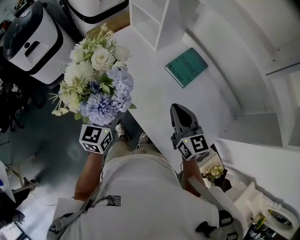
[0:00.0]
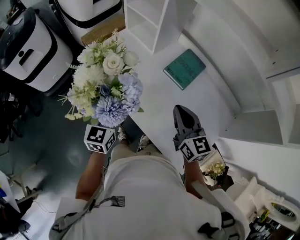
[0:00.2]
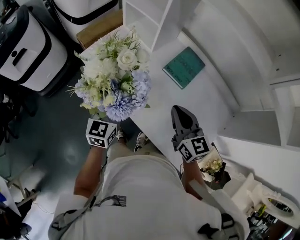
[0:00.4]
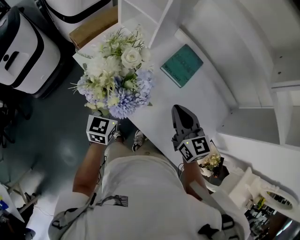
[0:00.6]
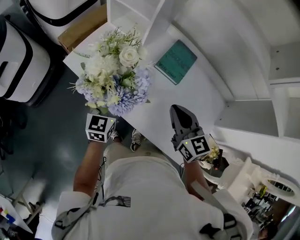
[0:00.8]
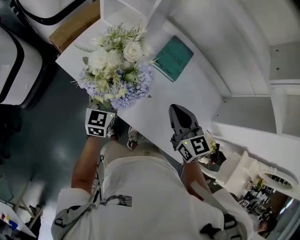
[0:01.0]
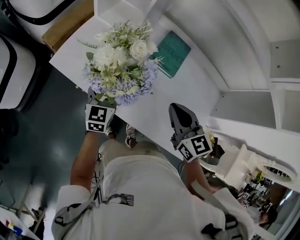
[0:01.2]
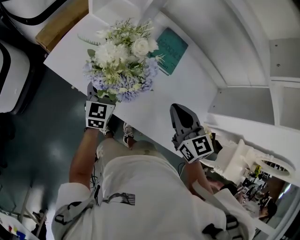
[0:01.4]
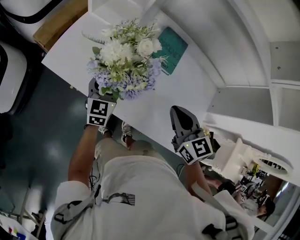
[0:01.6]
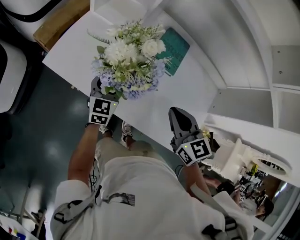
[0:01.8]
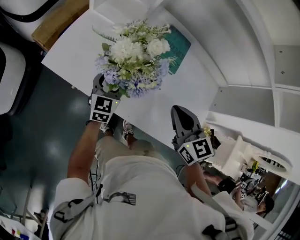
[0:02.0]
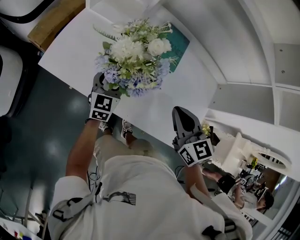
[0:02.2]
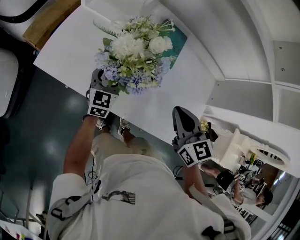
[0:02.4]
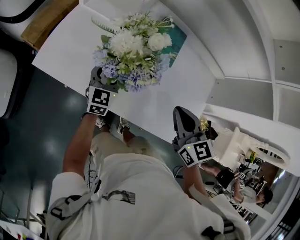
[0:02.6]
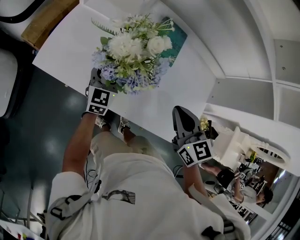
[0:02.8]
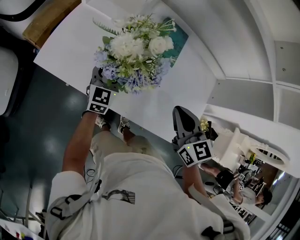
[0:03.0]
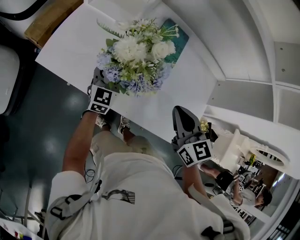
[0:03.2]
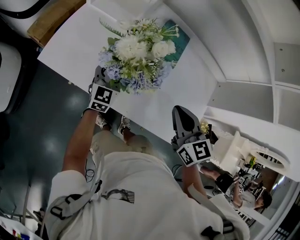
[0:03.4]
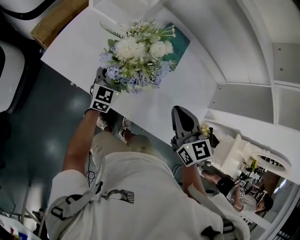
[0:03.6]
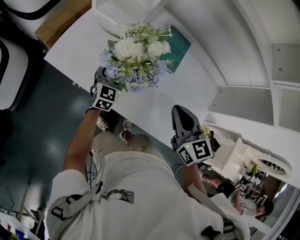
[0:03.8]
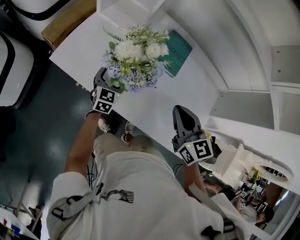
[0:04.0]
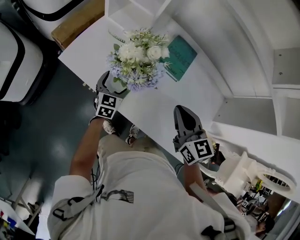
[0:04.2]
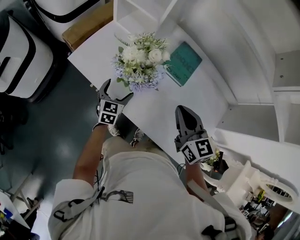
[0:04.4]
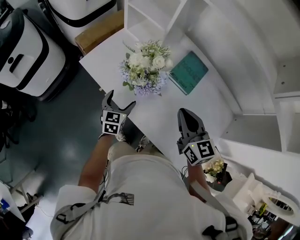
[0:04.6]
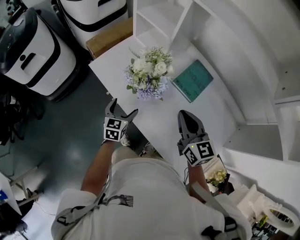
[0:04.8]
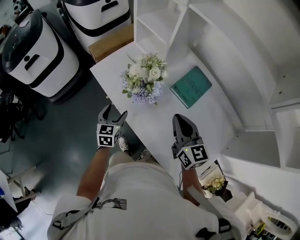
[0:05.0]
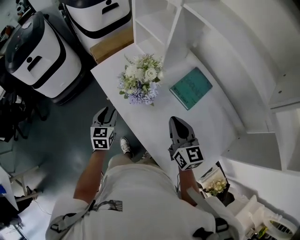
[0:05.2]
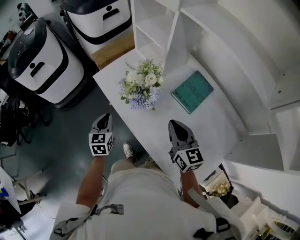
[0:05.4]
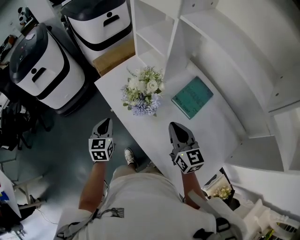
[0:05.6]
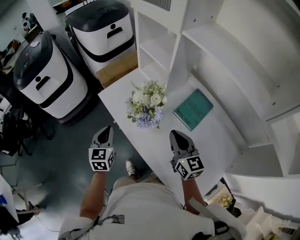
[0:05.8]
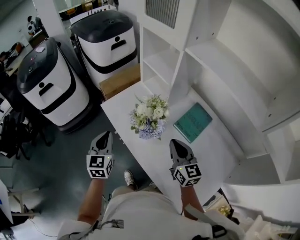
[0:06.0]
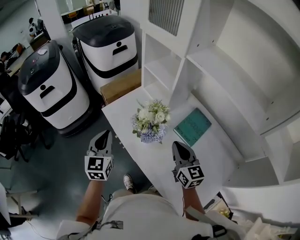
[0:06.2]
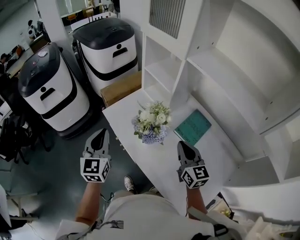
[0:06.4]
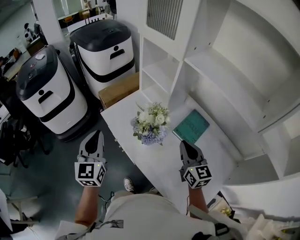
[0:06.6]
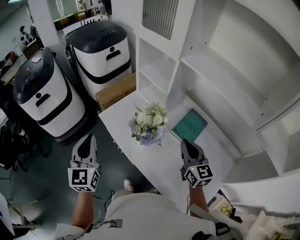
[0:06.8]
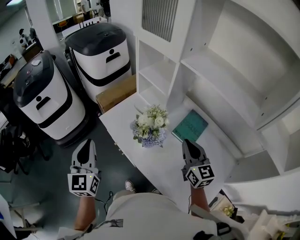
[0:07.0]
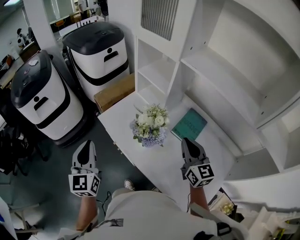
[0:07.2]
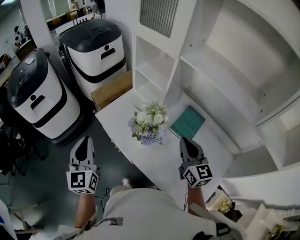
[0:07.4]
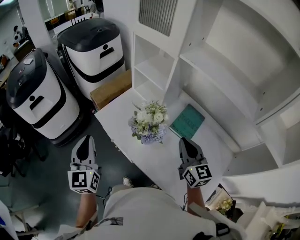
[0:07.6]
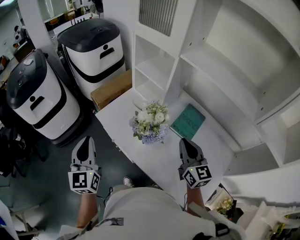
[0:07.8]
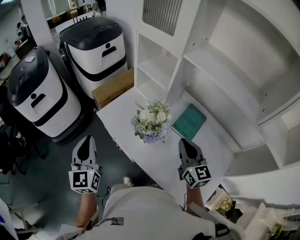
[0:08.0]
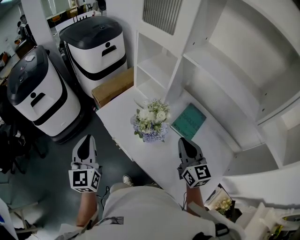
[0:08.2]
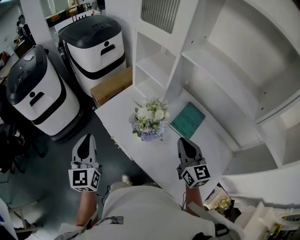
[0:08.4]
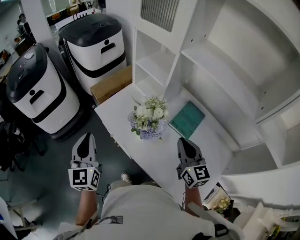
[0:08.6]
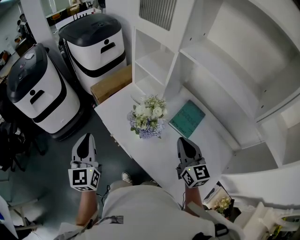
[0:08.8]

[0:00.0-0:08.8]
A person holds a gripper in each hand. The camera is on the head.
0:00.0 to 0:01.4: The right gripper moves some 5 cm, and turns by about 20 degrees. The left gripper shifts roughly 20 cm forward and downward, and swivels some 20 degrees.
0:01.4 to 0:03.0: The left gripper shifts by some 5 cm.
0:03.0 to 0:04.4: The left gripper heads backward, covering roughly 5 cm, and rotates approximately 20 degrees.
0:04.4 to 0:05.8: The left gripper heads upward and to the left, covering about 20 cm, changes its angle by roughly 30 degrees, and closes.
0:05.8 to 0:07.4: The right gripper shifts some 5 cm upward. Meanwhile the left gripper goes about 20 cm upward and to the left, and swivels about 20 degrees.
0:07.4 to 0:08.8: The grippers move only a little.

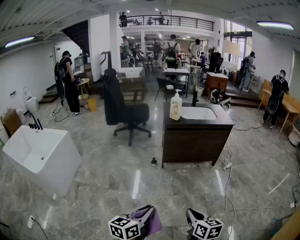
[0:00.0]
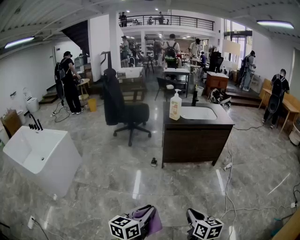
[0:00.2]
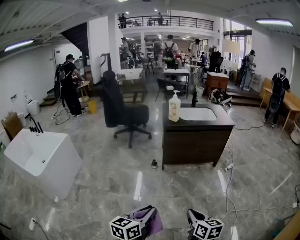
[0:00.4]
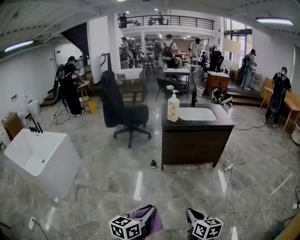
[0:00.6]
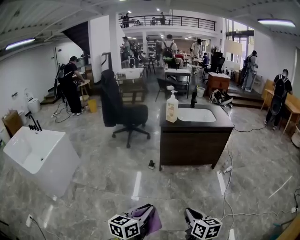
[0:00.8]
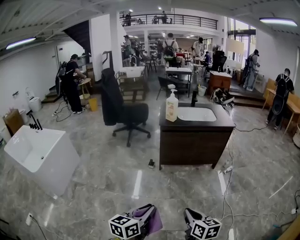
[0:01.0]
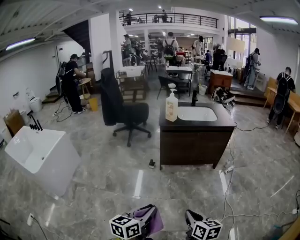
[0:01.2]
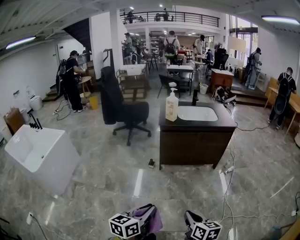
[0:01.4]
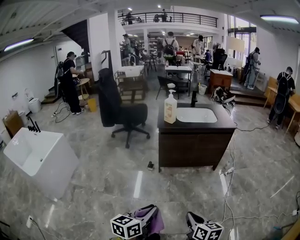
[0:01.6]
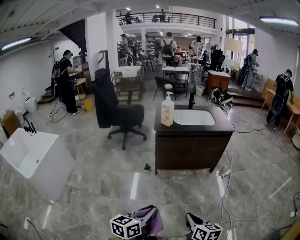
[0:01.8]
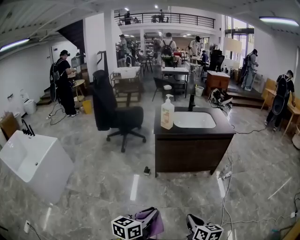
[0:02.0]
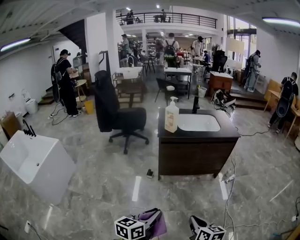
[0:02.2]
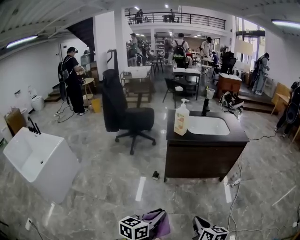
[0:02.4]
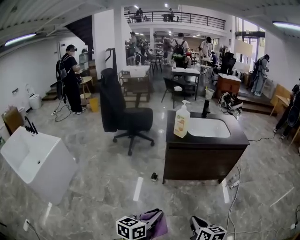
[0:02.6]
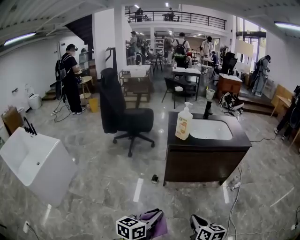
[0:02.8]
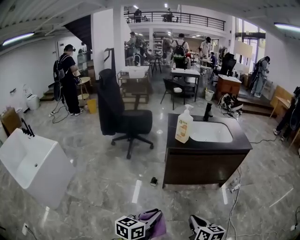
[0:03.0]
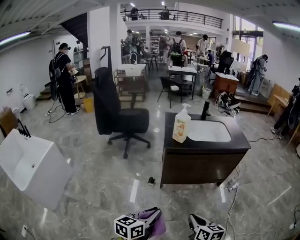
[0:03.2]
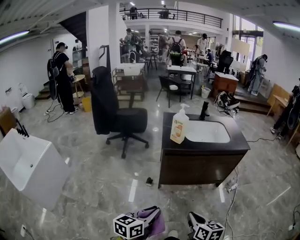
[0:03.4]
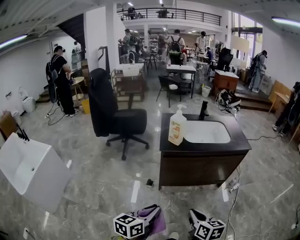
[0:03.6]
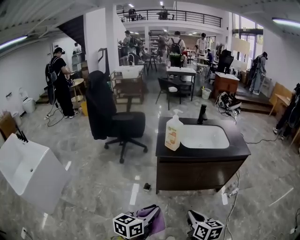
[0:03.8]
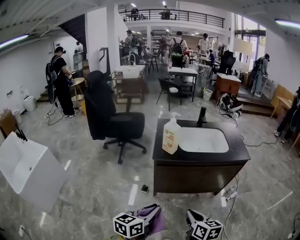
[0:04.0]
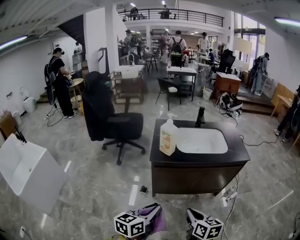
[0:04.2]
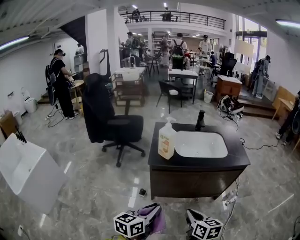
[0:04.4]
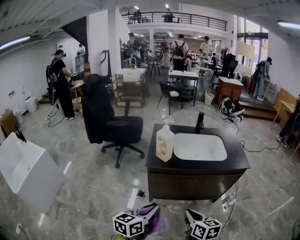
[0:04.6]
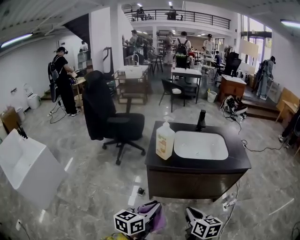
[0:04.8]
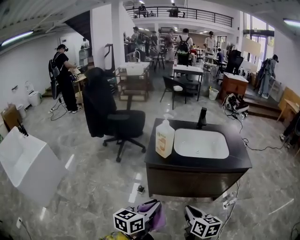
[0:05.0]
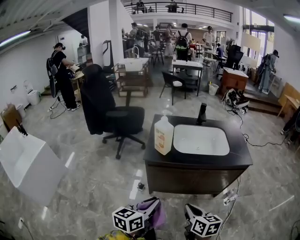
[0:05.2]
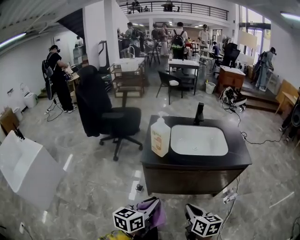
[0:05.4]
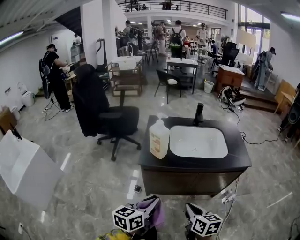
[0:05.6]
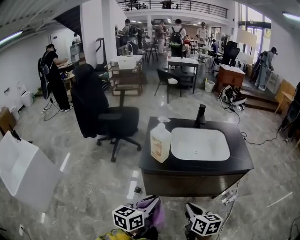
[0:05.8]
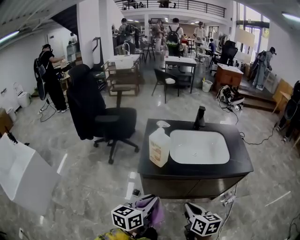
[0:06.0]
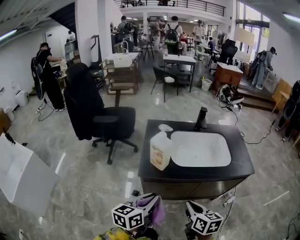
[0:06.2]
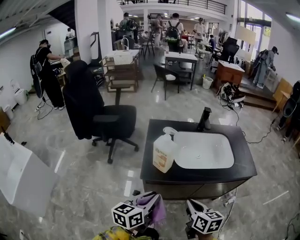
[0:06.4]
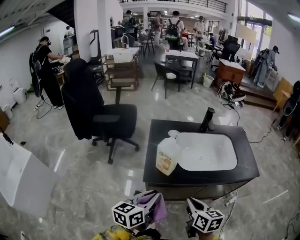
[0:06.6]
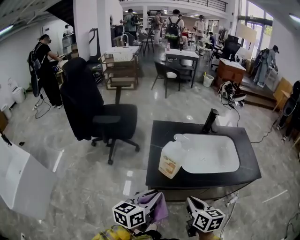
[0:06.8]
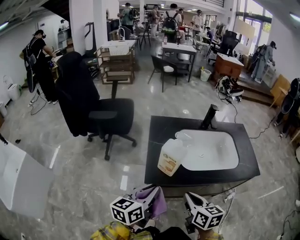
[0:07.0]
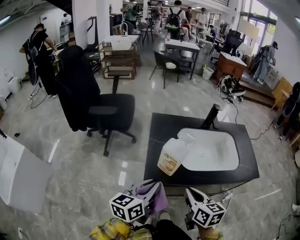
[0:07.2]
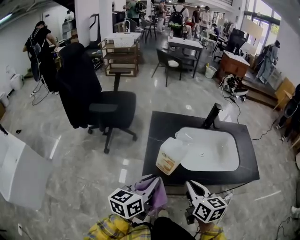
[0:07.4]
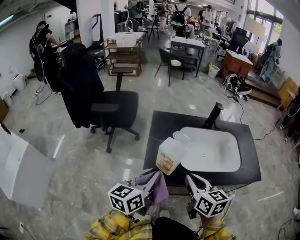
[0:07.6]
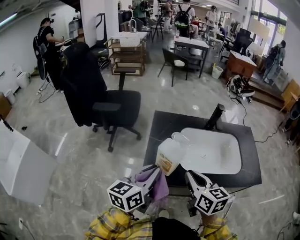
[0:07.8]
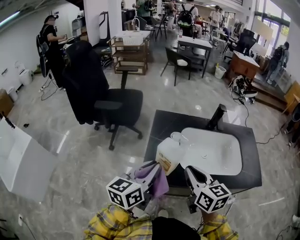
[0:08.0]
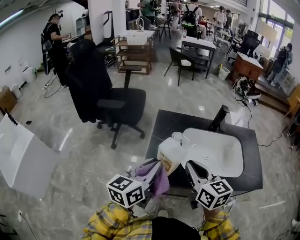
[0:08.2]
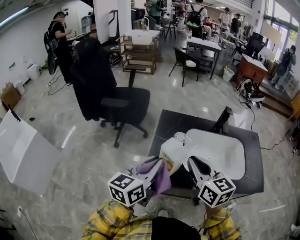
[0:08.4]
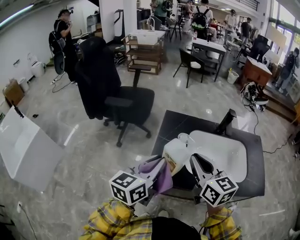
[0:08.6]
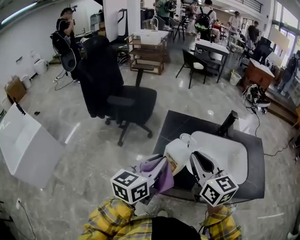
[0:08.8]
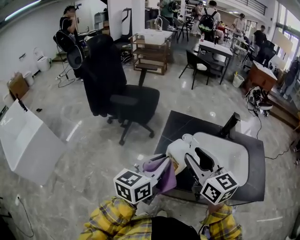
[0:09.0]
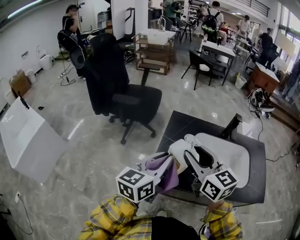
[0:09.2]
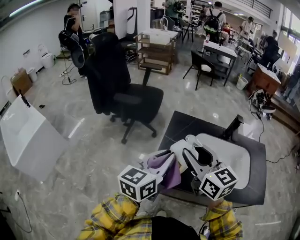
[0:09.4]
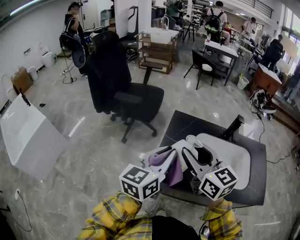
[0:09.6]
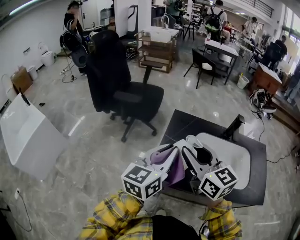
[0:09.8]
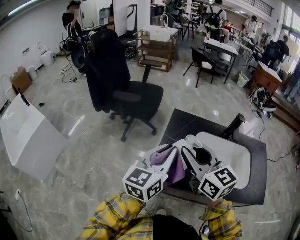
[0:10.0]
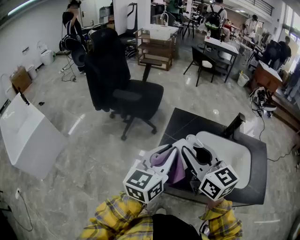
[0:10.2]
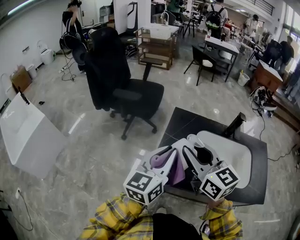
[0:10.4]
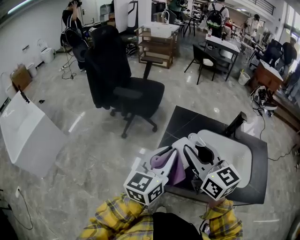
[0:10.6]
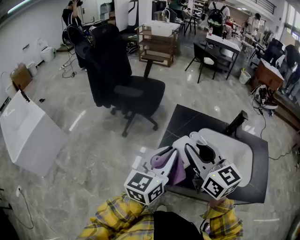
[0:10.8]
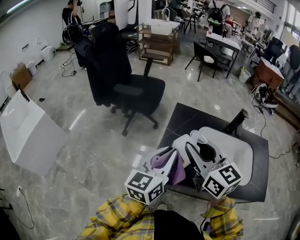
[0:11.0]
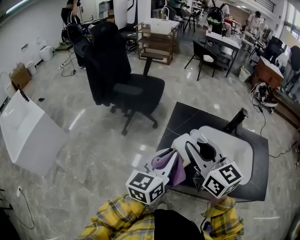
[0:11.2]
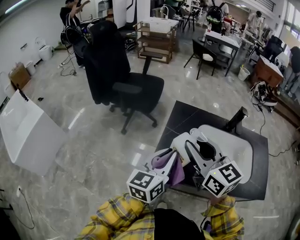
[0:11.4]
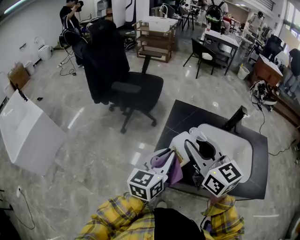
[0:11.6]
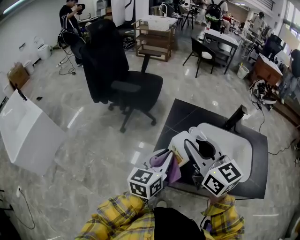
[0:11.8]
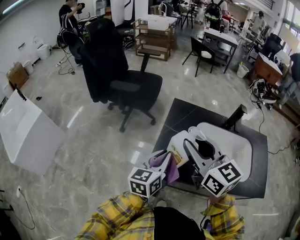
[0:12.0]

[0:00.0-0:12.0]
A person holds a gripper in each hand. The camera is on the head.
0:00.0 to 0:01.6: Both grippers move forward and to the right, roughly 15 cm.
0:01.6 to 0:03.0: Both grippers travel together forward and to the left, roughly 25 cm.
0:03.0 to 0:04.4: Both grippers move forward and to the right, some 25 cm.
0:04.4 to 0:06.0: The grippers both shift forward by some 20 cm.
0:06.0 to 0:07.6: The grippers both shift forward and to the left by roughly 20 cm.
0:07.6 to 0:09.0: The right gripper travels upward and forward by some 10 cm, changes its angle by some 30 degrees, and opens; the left gripper moves approximately 5 cm.
0:09.0 to 0:10.4: The grippers stay close to where they were, moving slightly.
0:10.4 to 0:12.0: The left gripper heads downward, covering about 10 cm.

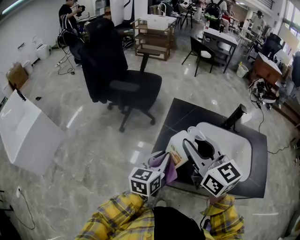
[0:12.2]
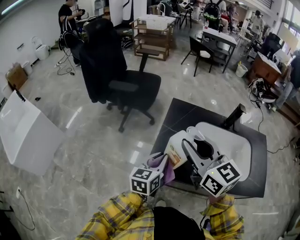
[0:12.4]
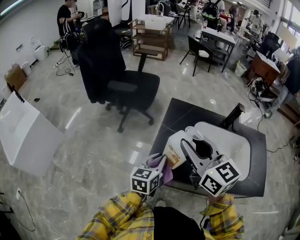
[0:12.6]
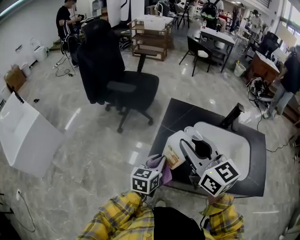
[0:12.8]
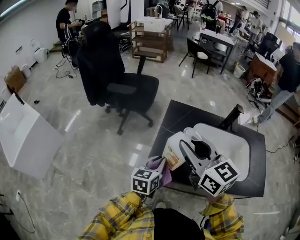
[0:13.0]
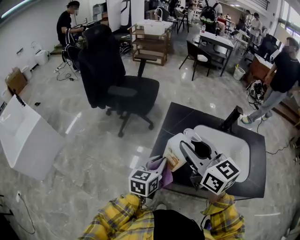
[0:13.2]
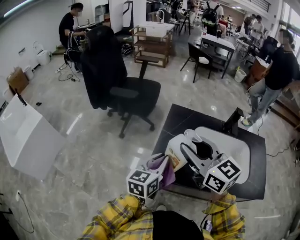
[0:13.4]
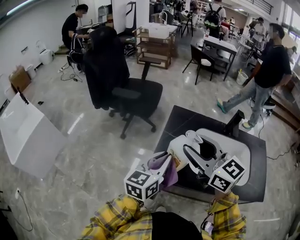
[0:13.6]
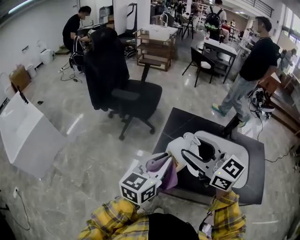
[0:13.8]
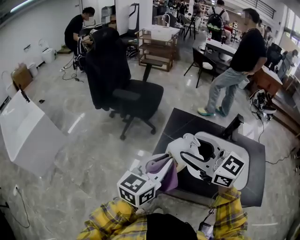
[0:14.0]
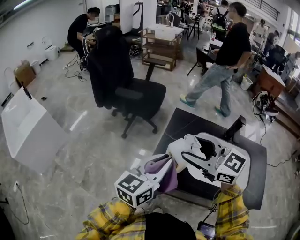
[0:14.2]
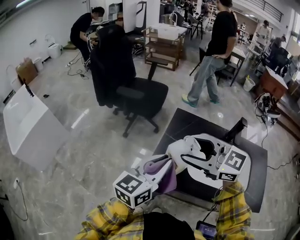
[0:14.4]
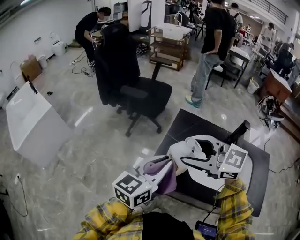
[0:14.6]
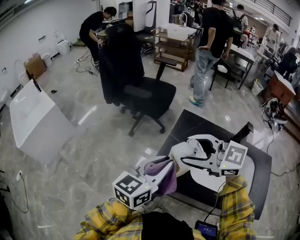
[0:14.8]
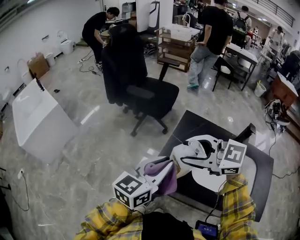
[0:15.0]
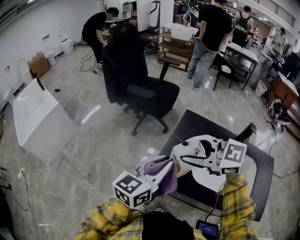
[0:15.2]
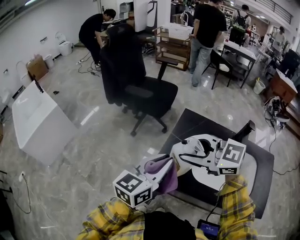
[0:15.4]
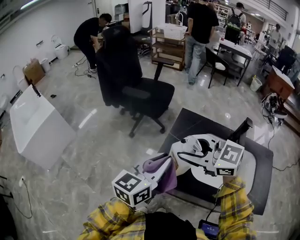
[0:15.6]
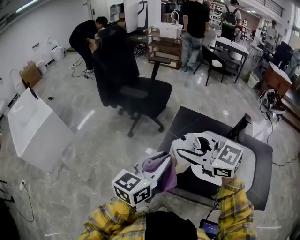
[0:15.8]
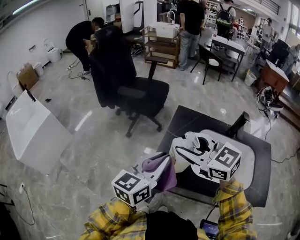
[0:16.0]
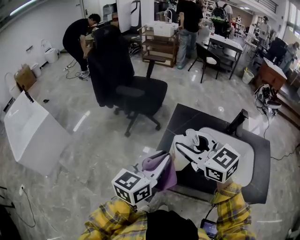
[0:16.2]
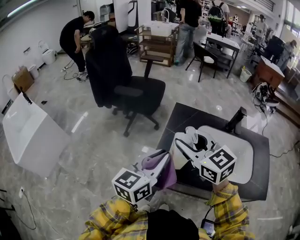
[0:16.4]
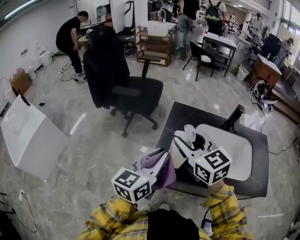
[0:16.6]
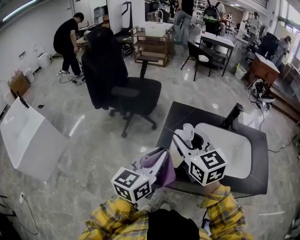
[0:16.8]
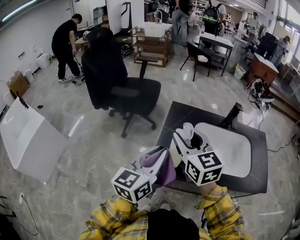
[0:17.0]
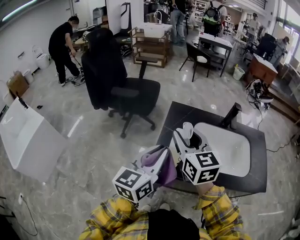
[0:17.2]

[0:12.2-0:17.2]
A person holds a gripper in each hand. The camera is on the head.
0:12.2 to 0:13.8: The left gripper travels upward by roughly 10 cm.
0:13.8 to 0:15.6: The right gripper swivels some 30 degrees.
0:15.6 to 0:17.2: The right gripper swivels roughly 60 degrees.
